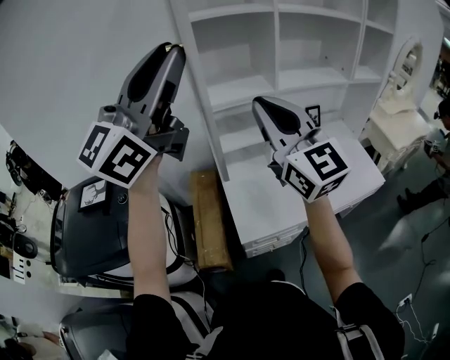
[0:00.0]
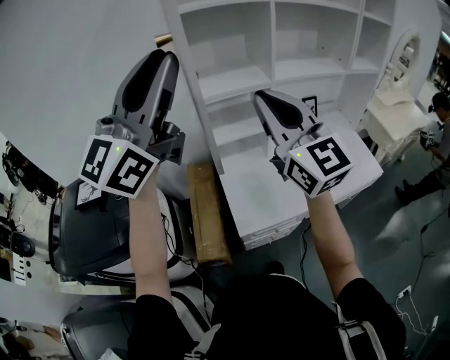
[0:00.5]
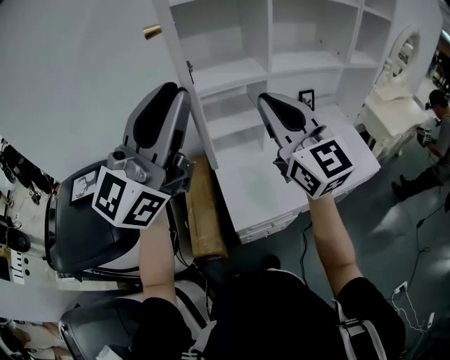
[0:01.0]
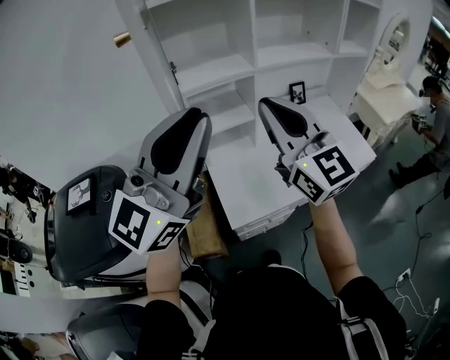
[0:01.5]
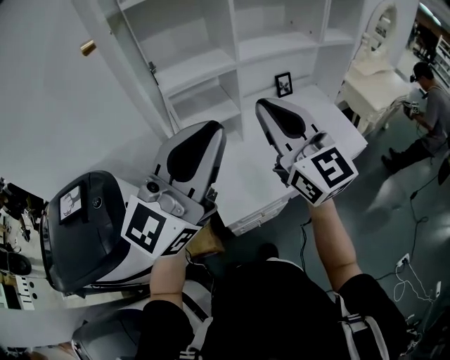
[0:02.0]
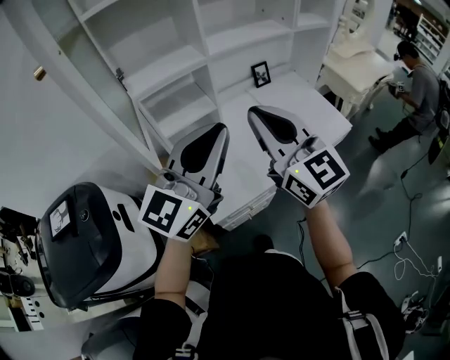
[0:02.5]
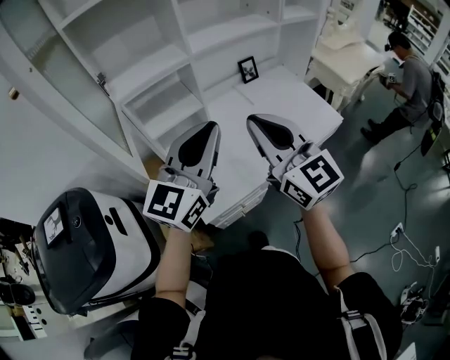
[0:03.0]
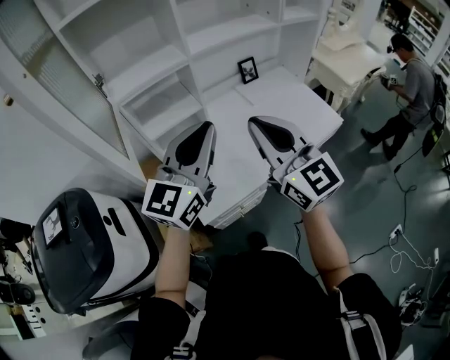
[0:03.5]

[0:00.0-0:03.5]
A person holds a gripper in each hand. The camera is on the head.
0:00.0 to 0:02.0: The left gripper moves downward and to the right, some 20 cm. The right gripper shifts some 10 cm to the right and downward.
0:02.0 to 0:03.5: The right gripper moves to the right and downward, some 10 cm; the left gripper travels downward, forward and to the right by some 15 cm.

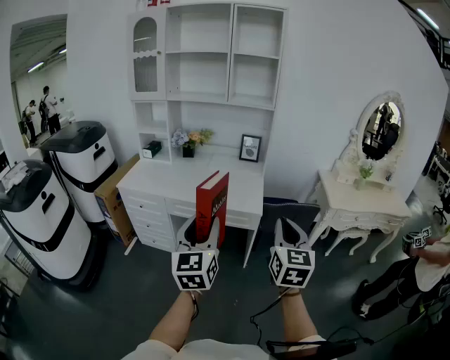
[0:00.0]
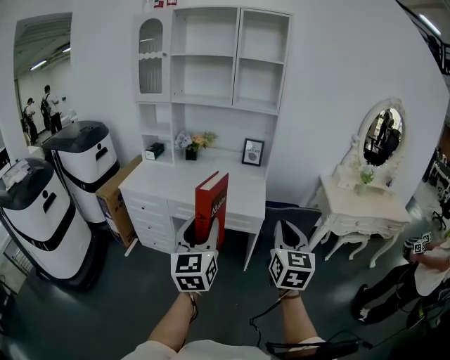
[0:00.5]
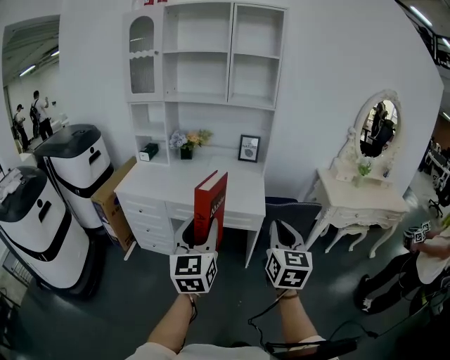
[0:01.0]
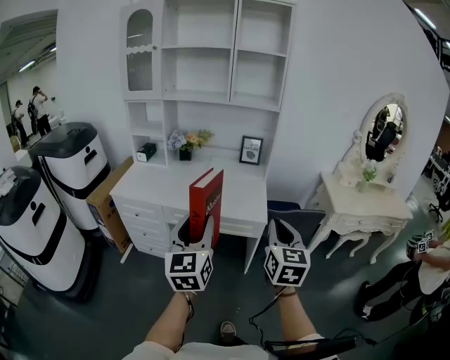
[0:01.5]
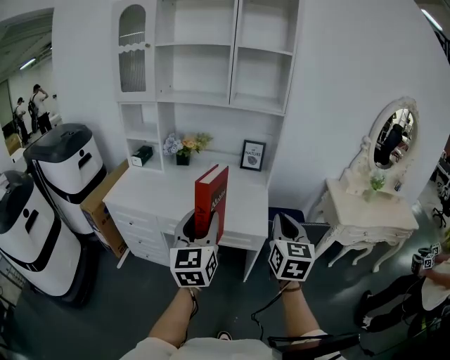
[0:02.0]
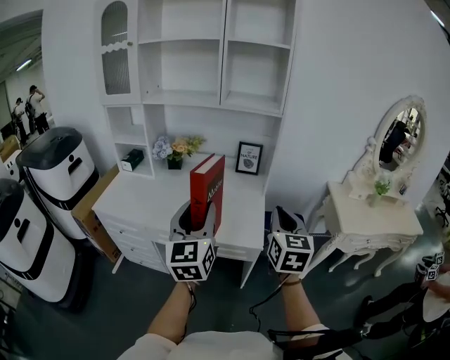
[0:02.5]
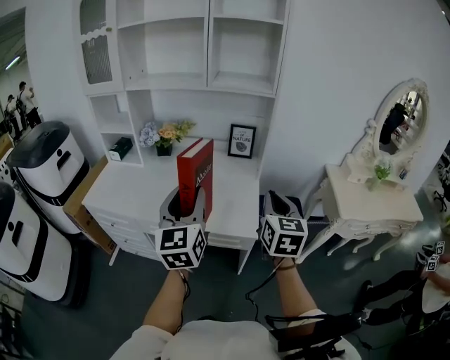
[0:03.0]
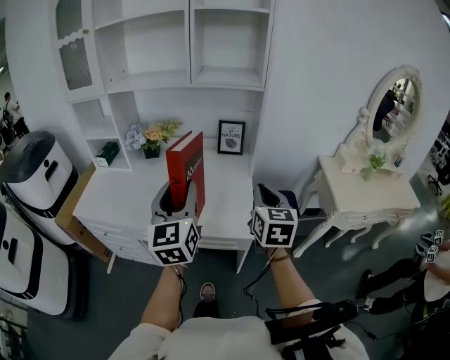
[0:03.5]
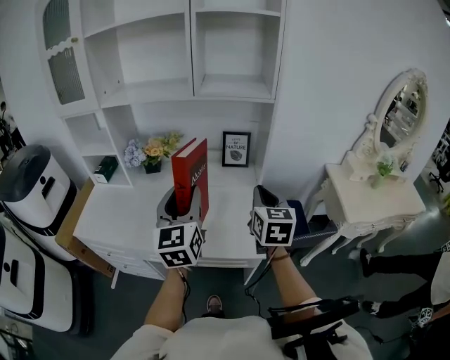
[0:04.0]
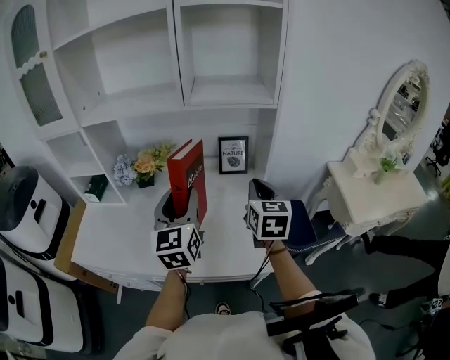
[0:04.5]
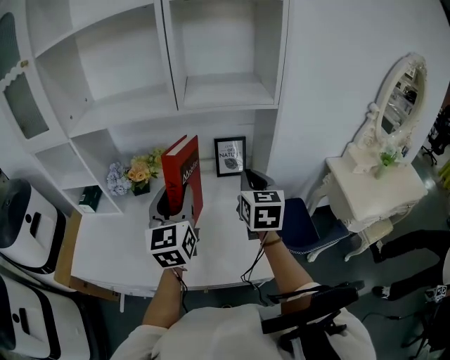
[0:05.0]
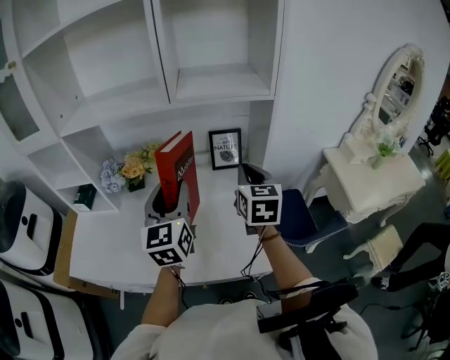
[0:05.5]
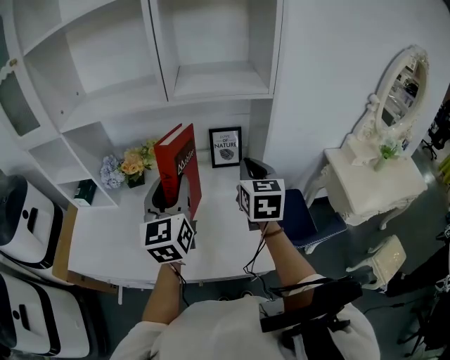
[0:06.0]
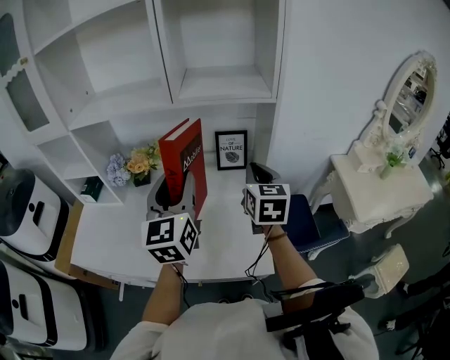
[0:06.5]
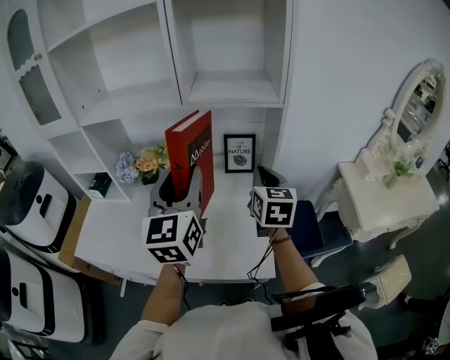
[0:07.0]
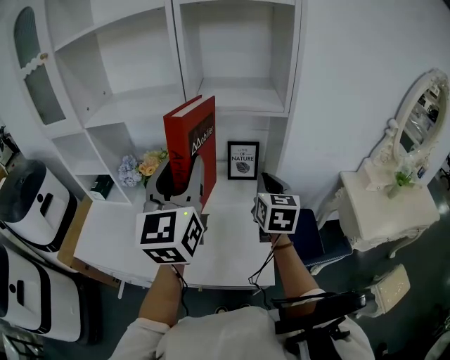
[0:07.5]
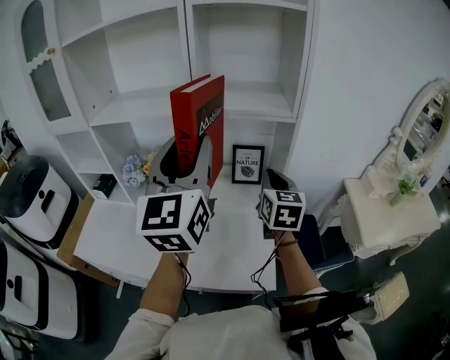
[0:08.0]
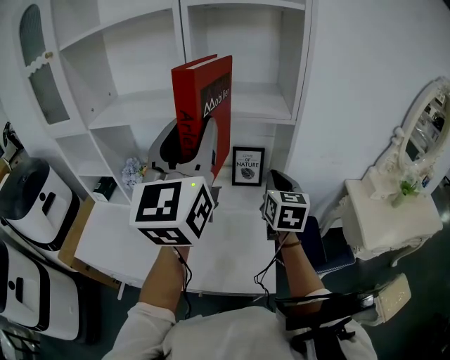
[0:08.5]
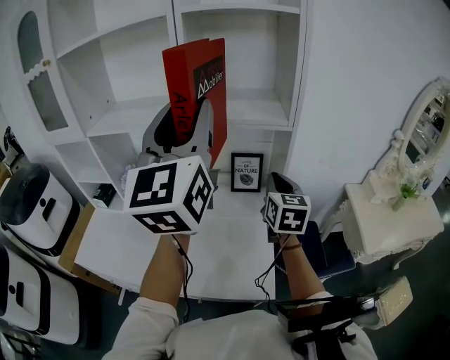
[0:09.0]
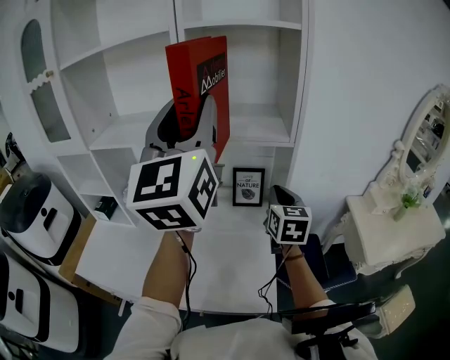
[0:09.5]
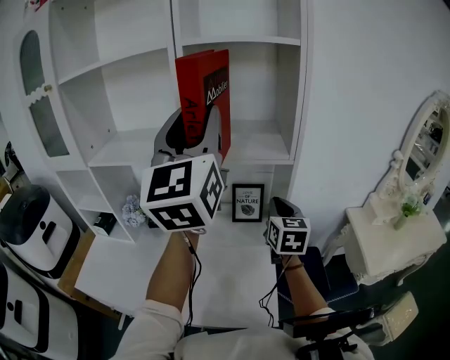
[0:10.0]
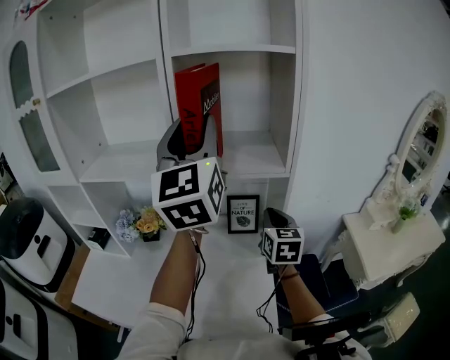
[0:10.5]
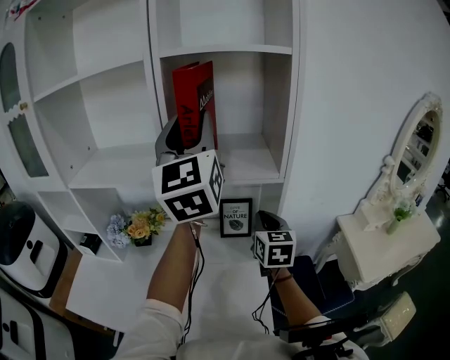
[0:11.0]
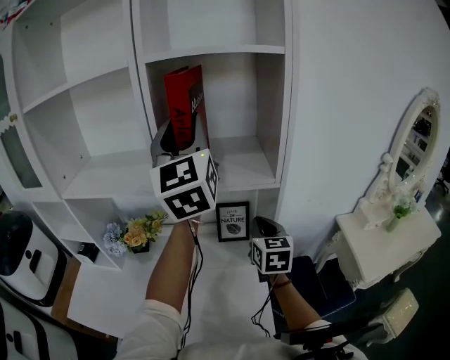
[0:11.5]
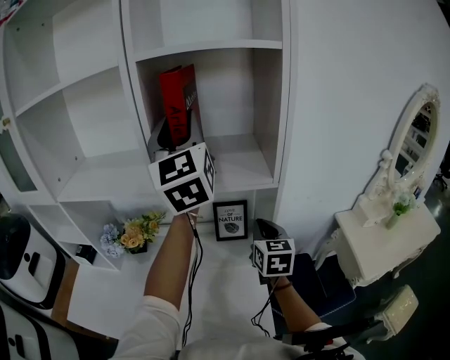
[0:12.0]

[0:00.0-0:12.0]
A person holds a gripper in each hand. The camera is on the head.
0:00.0 to 0:02.0: The two grippers go approximately 20 cm forward.
0:02.0 to 0:04.0: Both grippers move forward, approximately 30 cm.
0:04.0 to 0:06.0: Both grippers travel together forward, about 15 cm.
0:06.0 to 0:08.0: The left gripper travels upward by about 15 cm.
0:08.0 to 0:10.0: The left gripper moves upward and forward, approximately 15 cm; the right gripper goes roughly 5 cm forward.
0:10.0 to 0:12.0: The right gripper shifts by approximately 5 cm, while the left gripper goes about 15 cm forward.

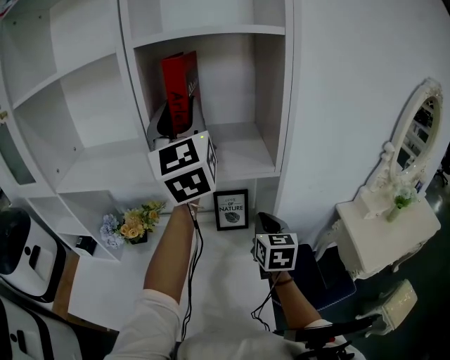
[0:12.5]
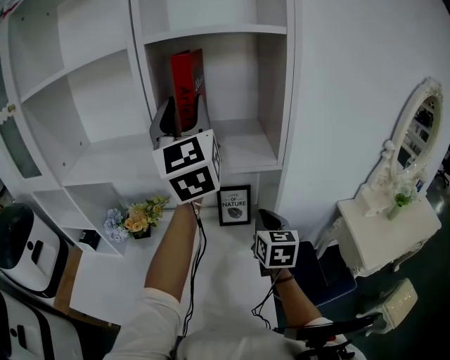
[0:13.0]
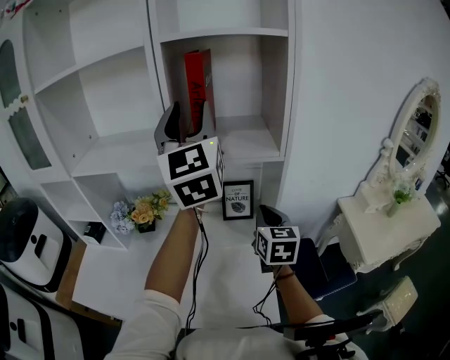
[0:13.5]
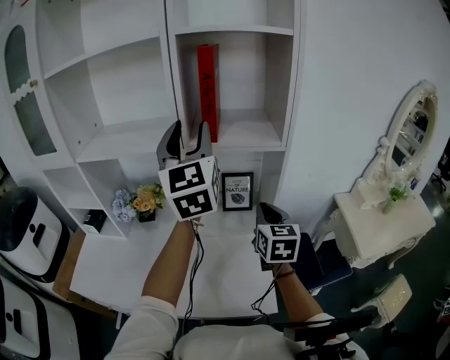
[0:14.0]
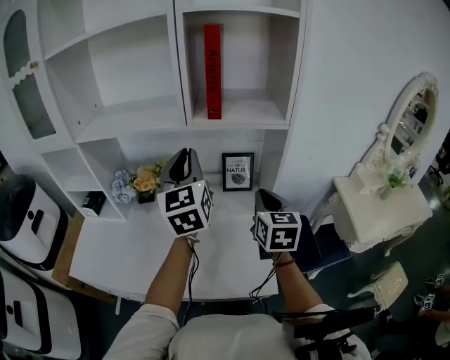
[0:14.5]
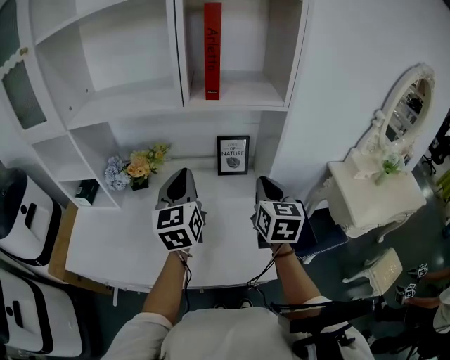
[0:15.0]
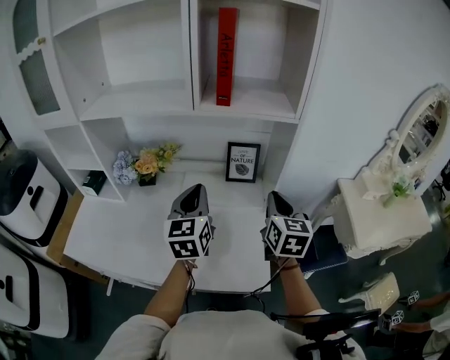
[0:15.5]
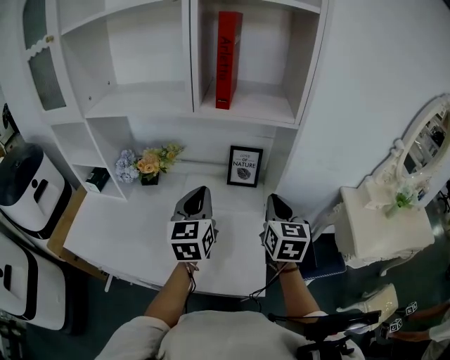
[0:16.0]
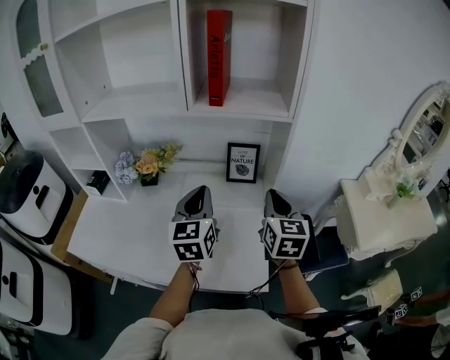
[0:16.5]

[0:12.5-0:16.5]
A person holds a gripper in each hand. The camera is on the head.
0:12.5 to 0:14.5: The right gripper heads backward and to the left, covering some 15 cm. The left gripper shifts approximately 25 cm downward, backward and to the left, and closes its fingers.
0:14.5 to 0:16.5: The left gripper shifts approximately 15 cm downward.

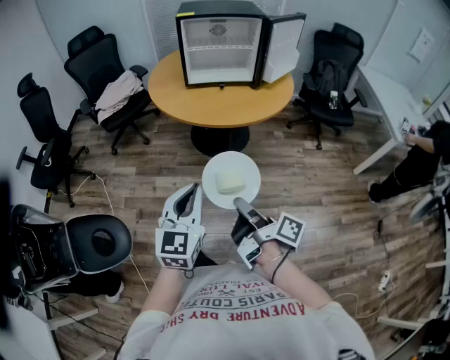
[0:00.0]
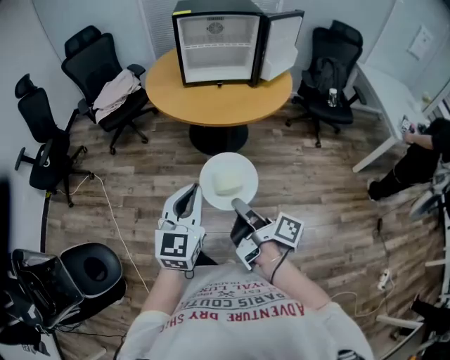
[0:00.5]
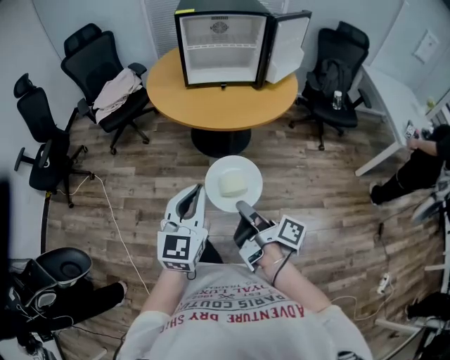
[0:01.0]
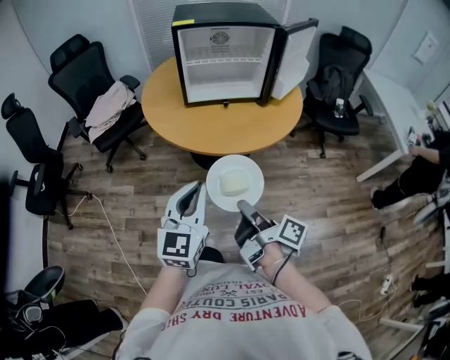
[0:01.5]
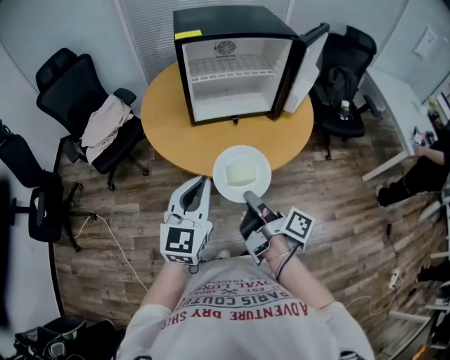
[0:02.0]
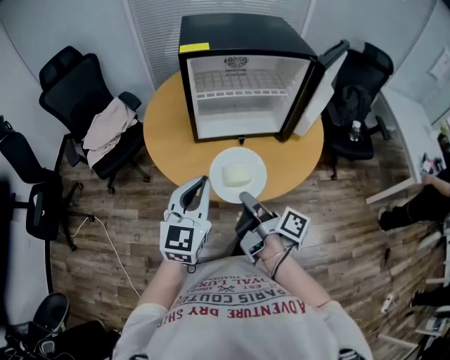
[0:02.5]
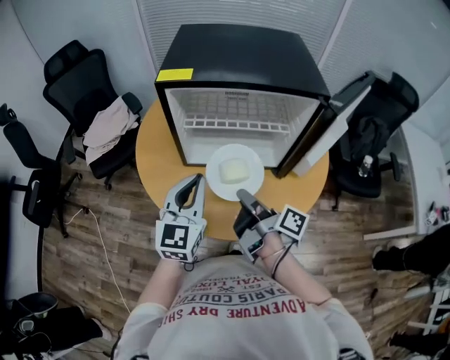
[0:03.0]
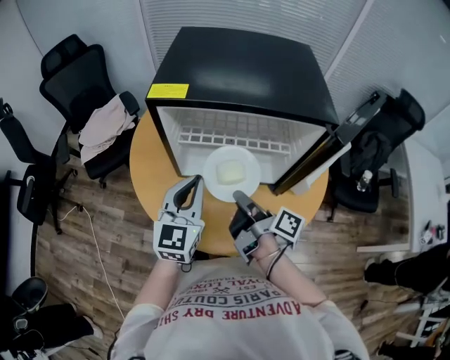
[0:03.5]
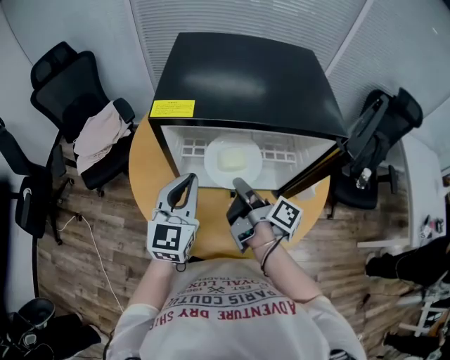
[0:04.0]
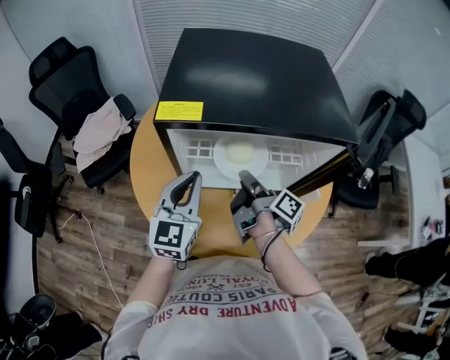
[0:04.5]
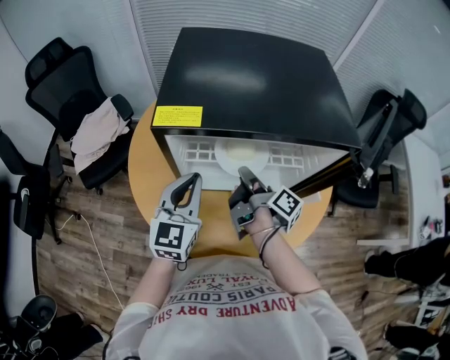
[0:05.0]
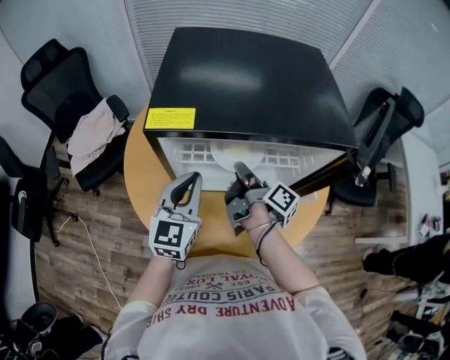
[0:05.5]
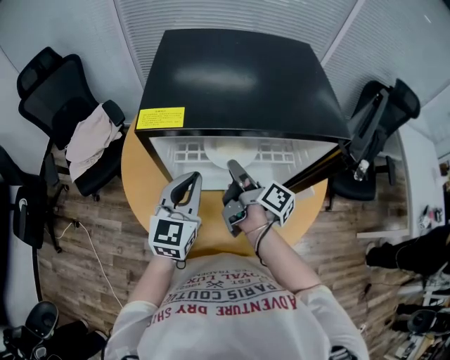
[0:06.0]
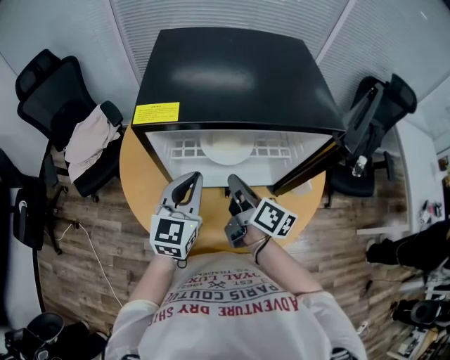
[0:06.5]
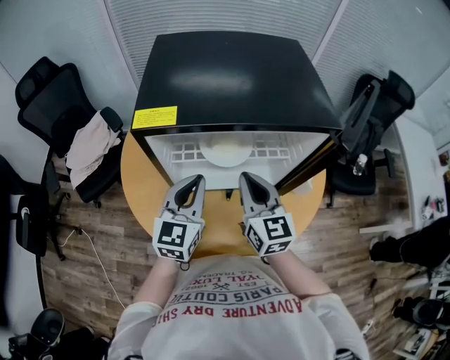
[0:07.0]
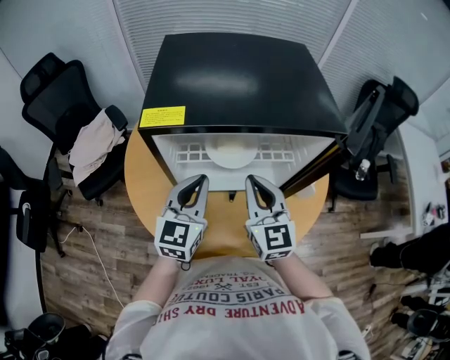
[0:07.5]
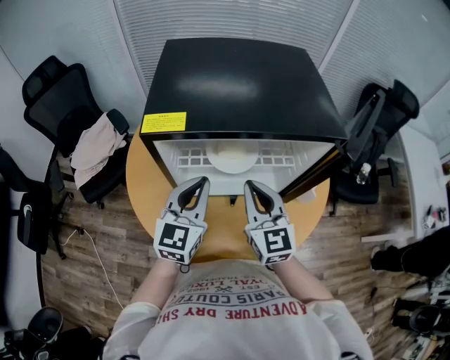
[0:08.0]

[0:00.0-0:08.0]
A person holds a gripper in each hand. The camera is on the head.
0:00.0 to 0:02.0: The left gripper moves roughly 35 cm.
0:02.0 to 0:04.0: The left gripper ends up some 35 cm from where it was.
